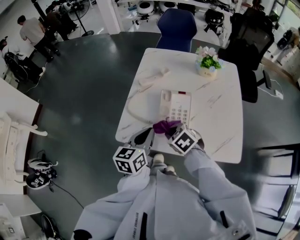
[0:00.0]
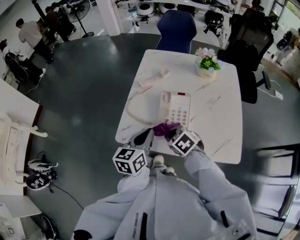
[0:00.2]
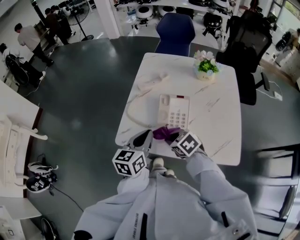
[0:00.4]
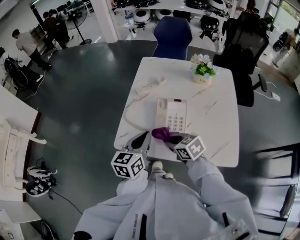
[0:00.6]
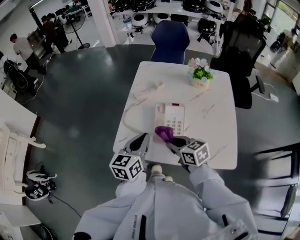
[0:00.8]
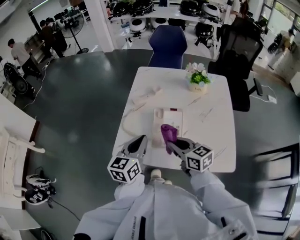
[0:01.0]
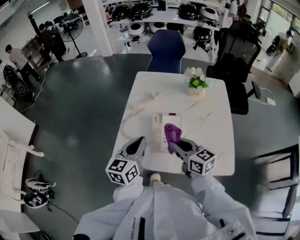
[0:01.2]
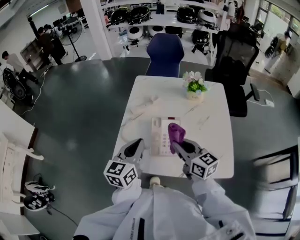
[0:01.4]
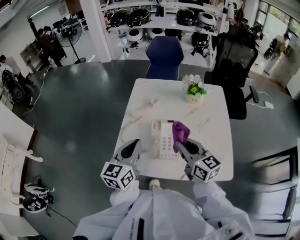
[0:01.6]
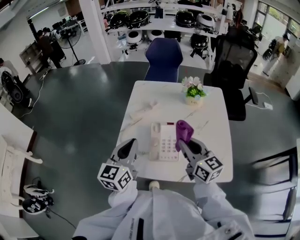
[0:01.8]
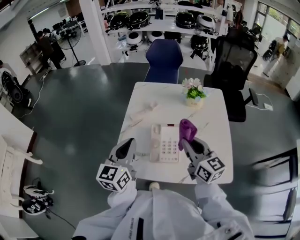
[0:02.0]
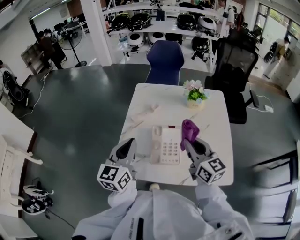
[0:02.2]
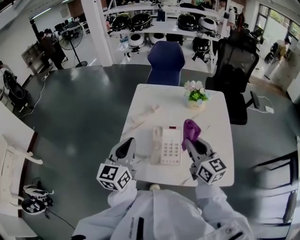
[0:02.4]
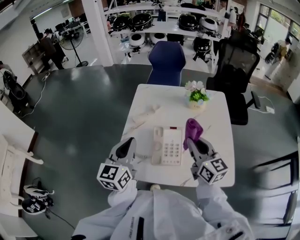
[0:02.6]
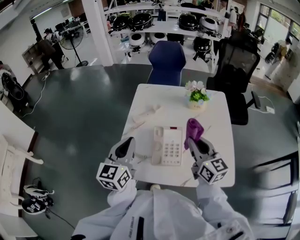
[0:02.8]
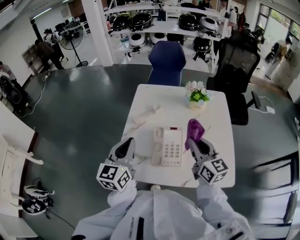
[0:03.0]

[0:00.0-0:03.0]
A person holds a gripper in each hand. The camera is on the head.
0:00.0 to 0:01.6: The left gripper travels upward and forward by approximately 10 cm, while the right gripper travels upward and to the right by approximately 20 cm, and tilts its fingers roughly 50 degrees upward.
0:01.6 to 0:03.0: The left gripper ends up approximately 5 cm from where it was. The right gripper ends up about 5 cm from where it was.

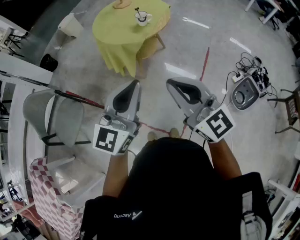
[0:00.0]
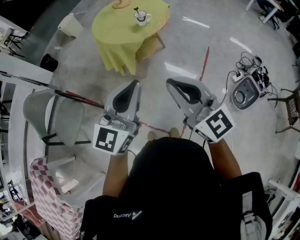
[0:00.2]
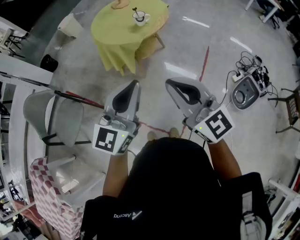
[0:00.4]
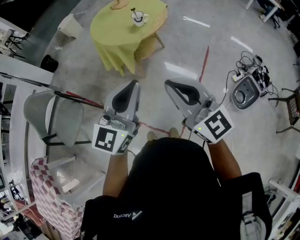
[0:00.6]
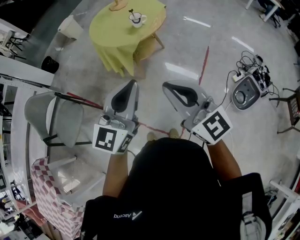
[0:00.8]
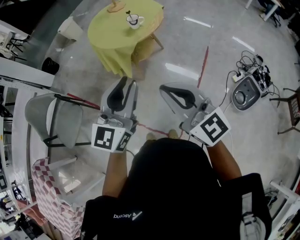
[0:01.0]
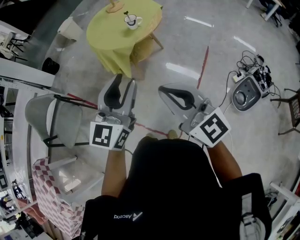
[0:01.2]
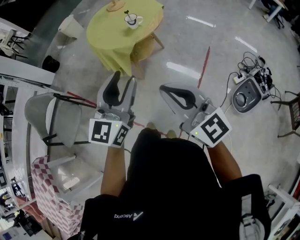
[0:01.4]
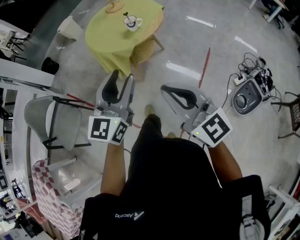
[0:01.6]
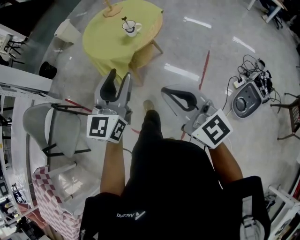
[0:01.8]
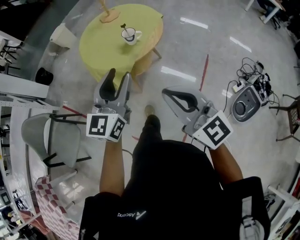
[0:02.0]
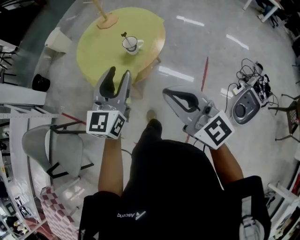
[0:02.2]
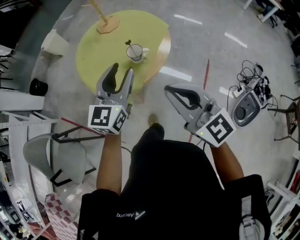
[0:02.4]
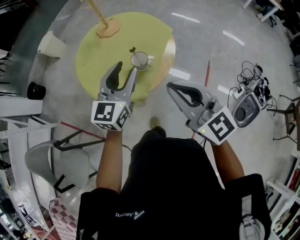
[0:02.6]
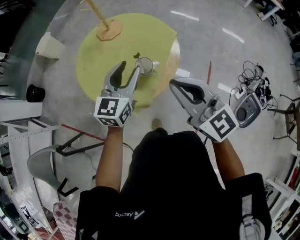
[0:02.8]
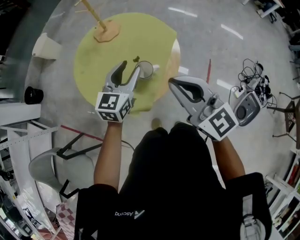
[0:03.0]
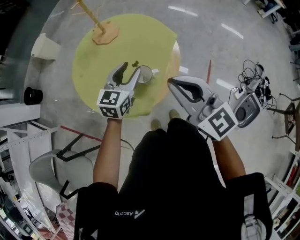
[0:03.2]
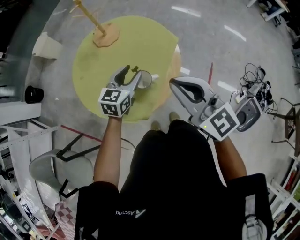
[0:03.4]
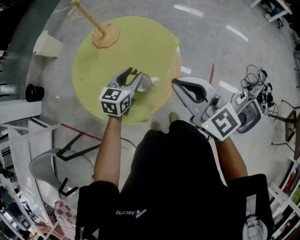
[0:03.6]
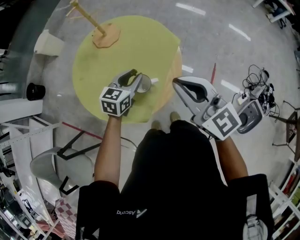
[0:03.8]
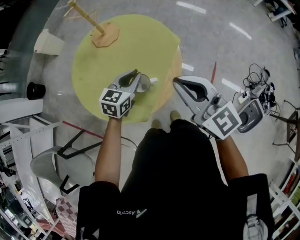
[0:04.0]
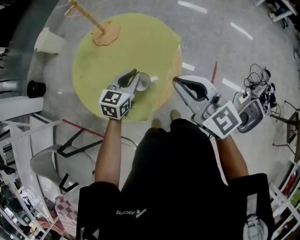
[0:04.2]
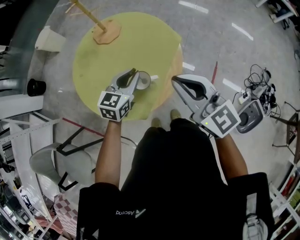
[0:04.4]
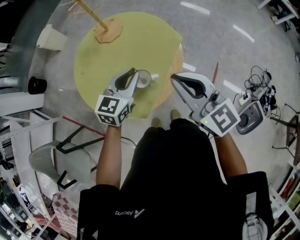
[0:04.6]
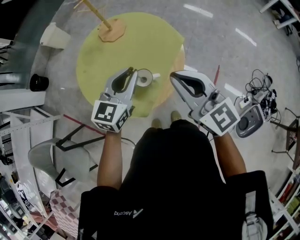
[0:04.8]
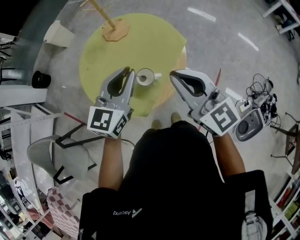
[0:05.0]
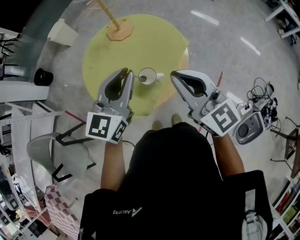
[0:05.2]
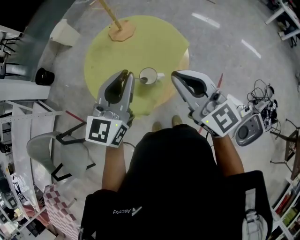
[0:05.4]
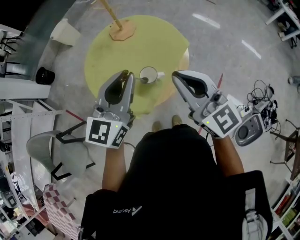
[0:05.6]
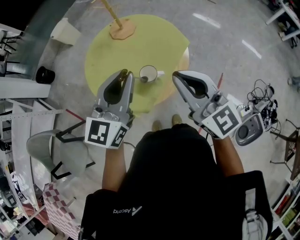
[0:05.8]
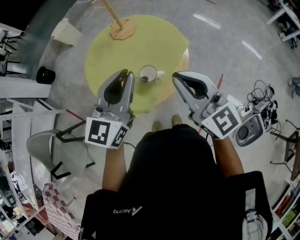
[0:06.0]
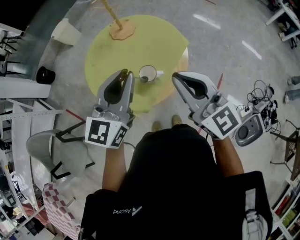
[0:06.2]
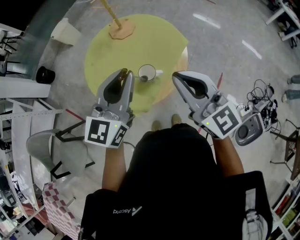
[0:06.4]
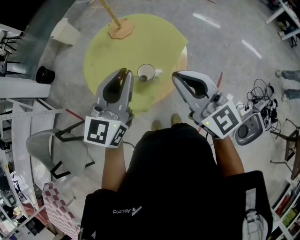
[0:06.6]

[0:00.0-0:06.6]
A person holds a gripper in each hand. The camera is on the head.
0:00.0 to 0:01.6: The right gripper shifts approximately 10 cm to the right. The left gripper goes some 10 cm forward and to the right, and opens.
0:01.6 to 0:03.2: Both grippers are carried forward, roughly 50 cm. The left gripper swivels about 30 degrees.
0:03.2 to 0:05.0: The right gripper ends up approximately 5 cm from where it was, while the left gripper shifts some 10 cm upward, and closes up.
0:05.0 to 0:06.6: The left gripper shifts some 10 cm upward and backward.

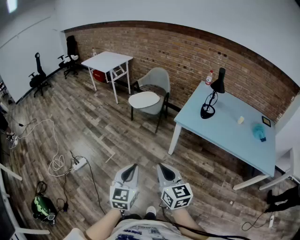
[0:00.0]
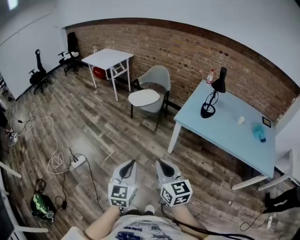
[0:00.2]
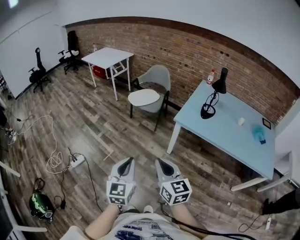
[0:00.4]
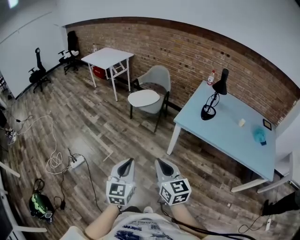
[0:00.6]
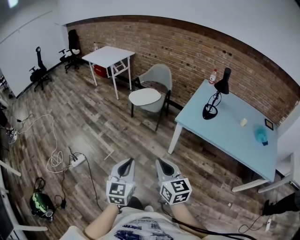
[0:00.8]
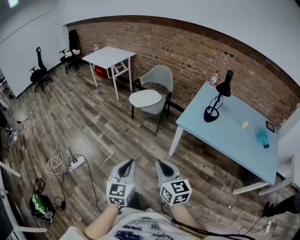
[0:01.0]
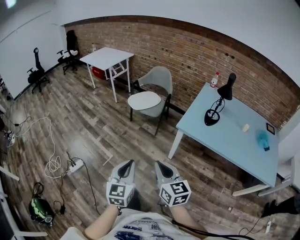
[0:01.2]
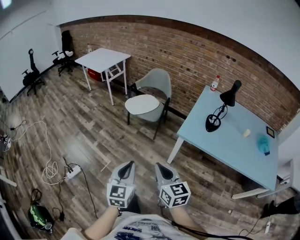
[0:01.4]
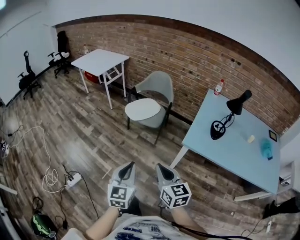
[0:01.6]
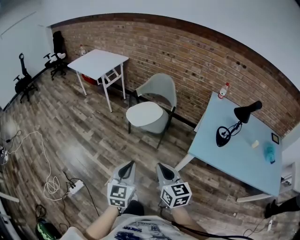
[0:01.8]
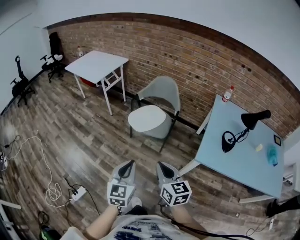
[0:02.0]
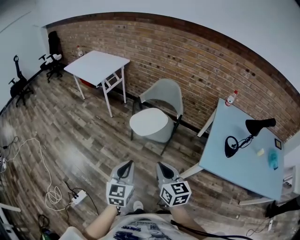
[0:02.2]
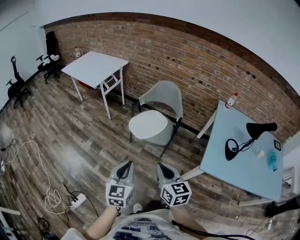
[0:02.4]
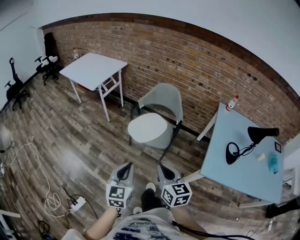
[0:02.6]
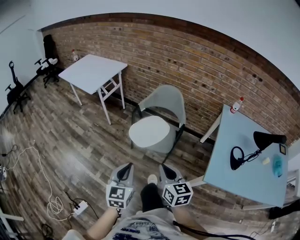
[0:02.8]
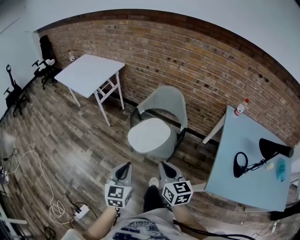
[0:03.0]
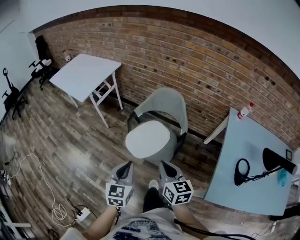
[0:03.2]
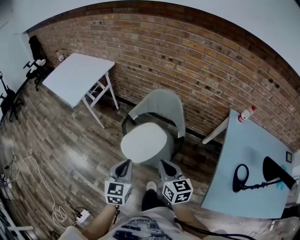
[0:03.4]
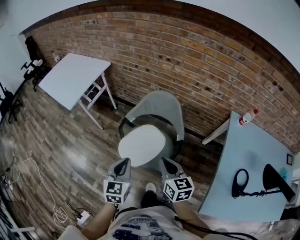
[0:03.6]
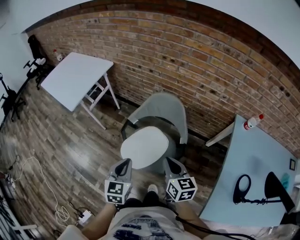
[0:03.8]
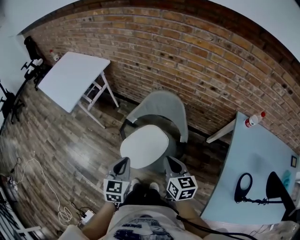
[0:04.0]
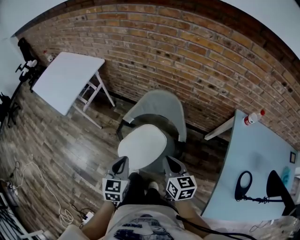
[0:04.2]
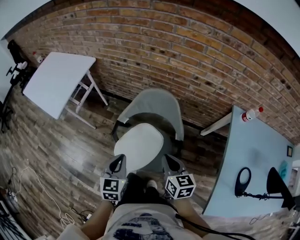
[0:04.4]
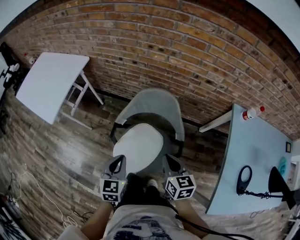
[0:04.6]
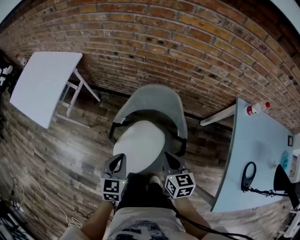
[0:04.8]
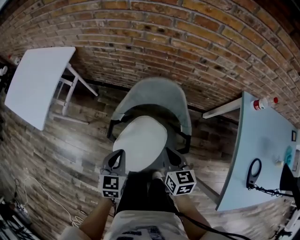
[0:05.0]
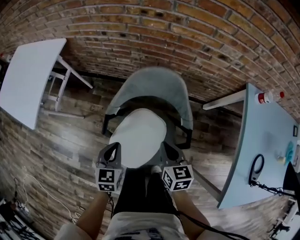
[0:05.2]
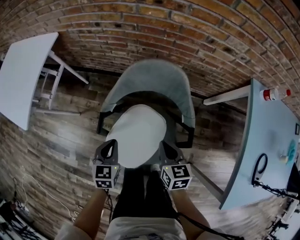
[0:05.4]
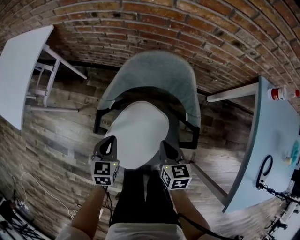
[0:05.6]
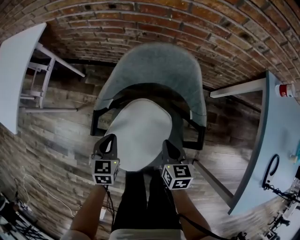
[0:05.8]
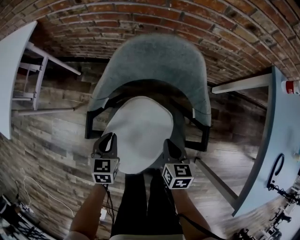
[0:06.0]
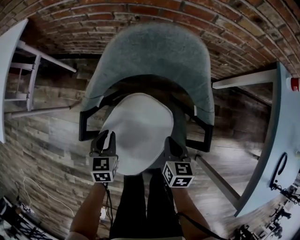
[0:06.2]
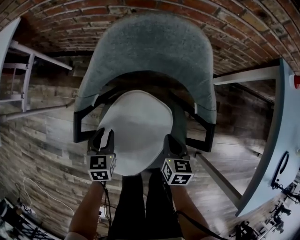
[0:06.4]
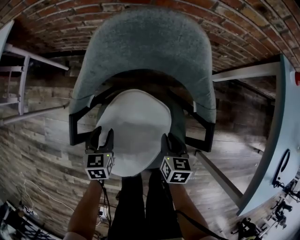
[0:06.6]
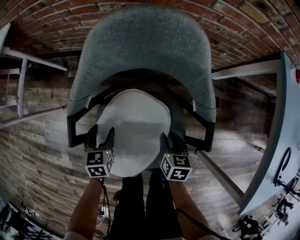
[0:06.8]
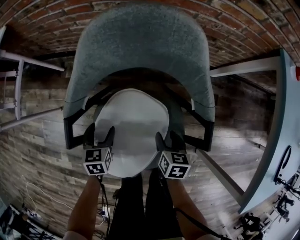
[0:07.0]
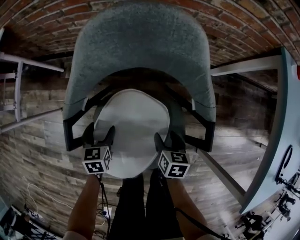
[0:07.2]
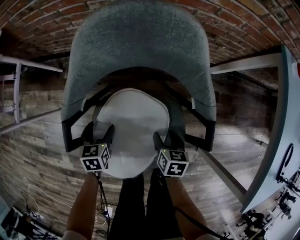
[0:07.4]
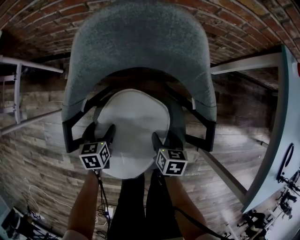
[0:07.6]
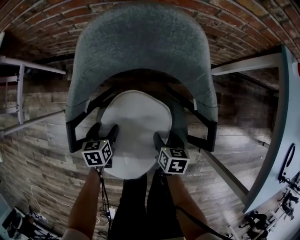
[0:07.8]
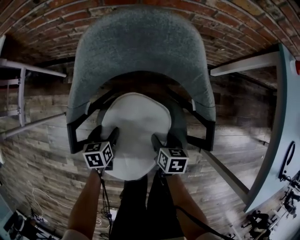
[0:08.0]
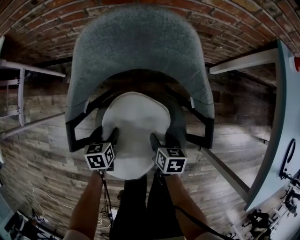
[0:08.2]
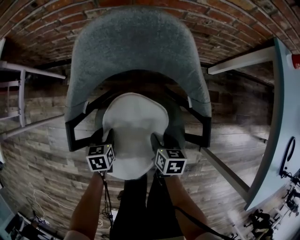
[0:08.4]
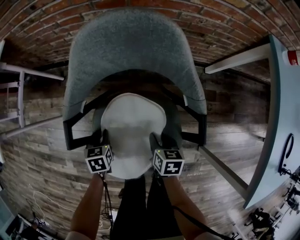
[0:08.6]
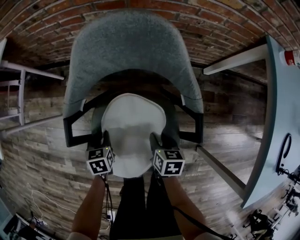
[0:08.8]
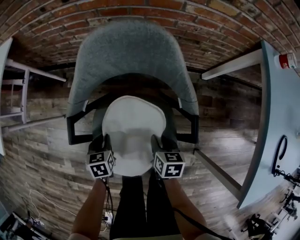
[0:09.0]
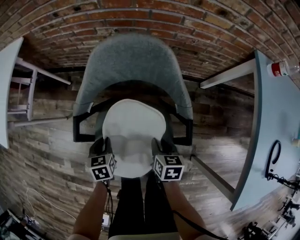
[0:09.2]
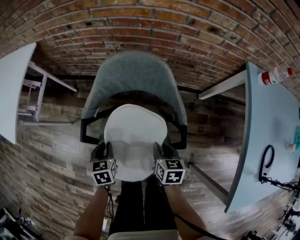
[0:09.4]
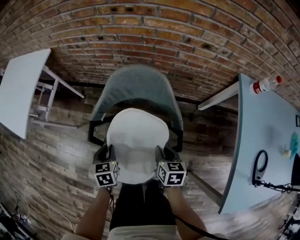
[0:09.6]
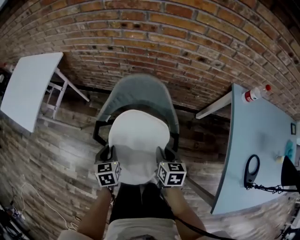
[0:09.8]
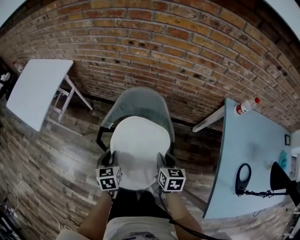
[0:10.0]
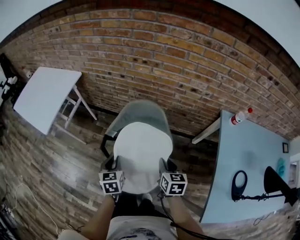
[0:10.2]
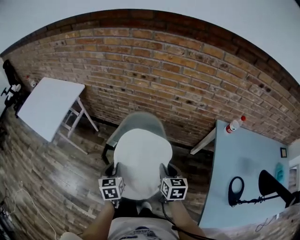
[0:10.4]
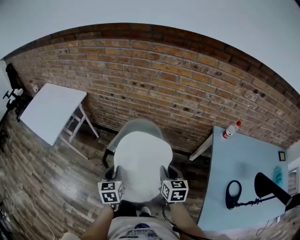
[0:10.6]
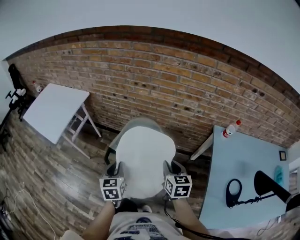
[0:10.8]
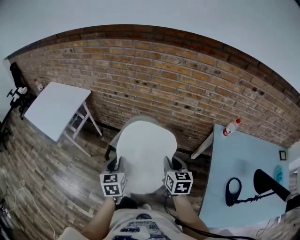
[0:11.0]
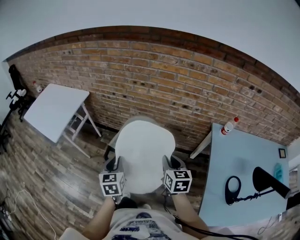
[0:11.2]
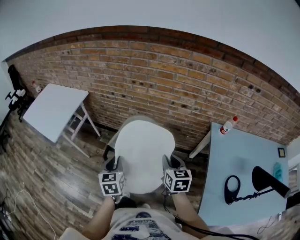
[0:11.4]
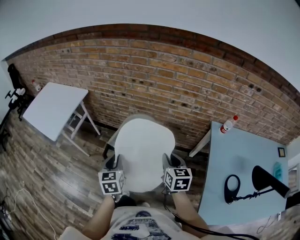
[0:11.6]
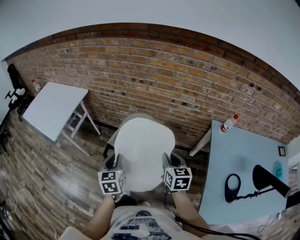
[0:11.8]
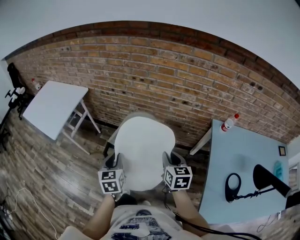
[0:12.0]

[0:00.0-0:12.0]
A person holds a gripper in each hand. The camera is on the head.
0:00.0 to 0:01.6: The two grippers go about 30 cm forward.
0:01.6 to 0:03.0: The two grippers travel together, forward, about 40 cm.
0:03.0 to 0:04.4: Both grippers move forward, about 30 cm.
0:04.4 to 0:06.0: The left gripper shifts approximately 40 cm downward and forward; the right gripper shifts about 35 cm downward, and rotates approximately 20 degrees.
0:06.0 to 0:07.6: Both grippers travel together downward, approximately 15 cm. The left gripper opens its fingers, while the right gripper opens up.
0:07.6 to 0:09.0: The grippers both shift upward by some 5 cm. The left gripper closes up, while the right gripper closes its fingers.
0:09.0 to 0:10.4: The grippers both shift upward by approximately 40 cm. The left gripper turns by some 30 degrees; the right gripper turns by about 30 degrees.
0:10.4 to 0:12.0: Both grippers travel together upward, about 10 cm.

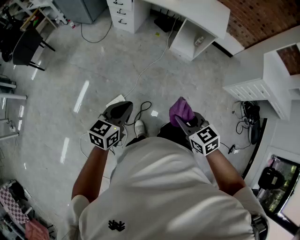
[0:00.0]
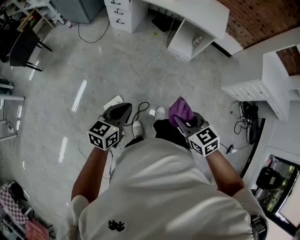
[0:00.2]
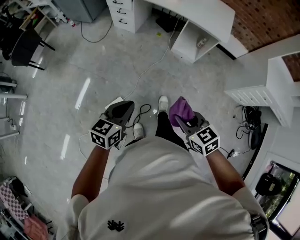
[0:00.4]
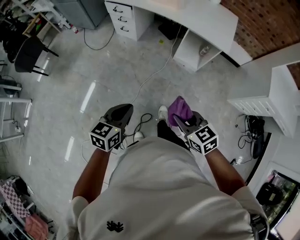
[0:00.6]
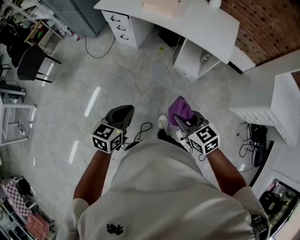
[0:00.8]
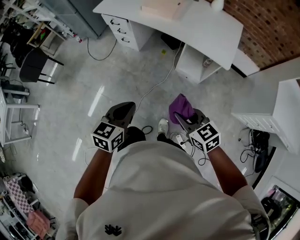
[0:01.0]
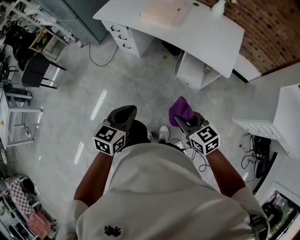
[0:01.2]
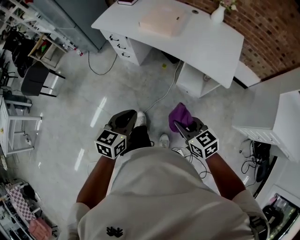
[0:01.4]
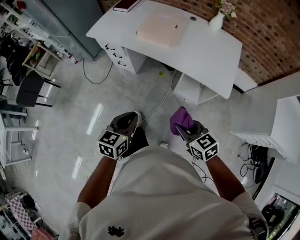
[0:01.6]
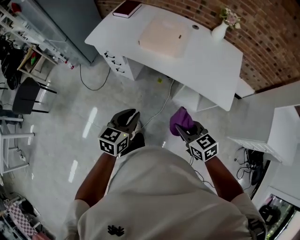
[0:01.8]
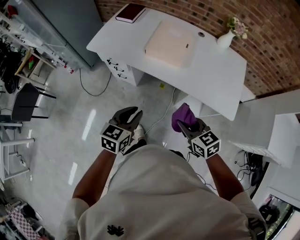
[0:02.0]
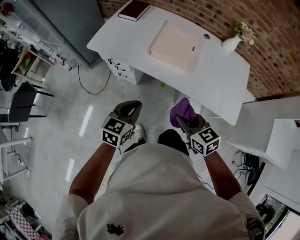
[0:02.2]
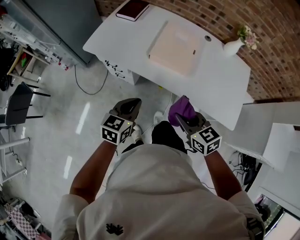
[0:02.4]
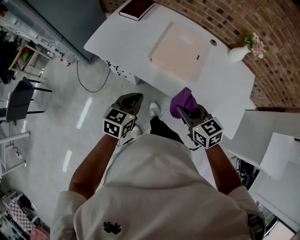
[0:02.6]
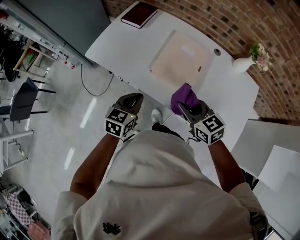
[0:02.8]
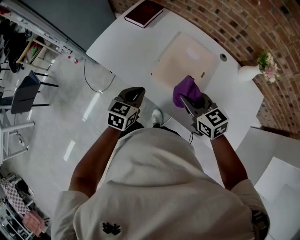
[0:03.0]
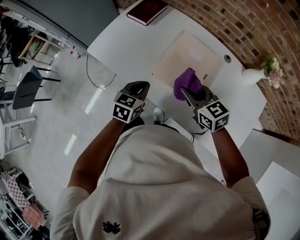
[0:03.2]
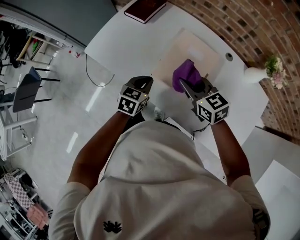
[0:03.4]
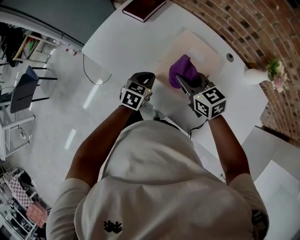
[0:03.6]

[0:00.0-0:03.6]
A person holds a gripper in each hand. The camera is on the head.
0:00.0 to 0:01.8: The two grippers travel together, forward, some 60 cm.
0:01.8 to 0:03.6: Both grippers are carried forward, some 60 cm.
